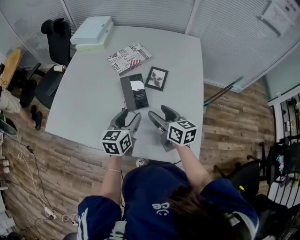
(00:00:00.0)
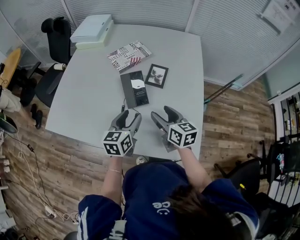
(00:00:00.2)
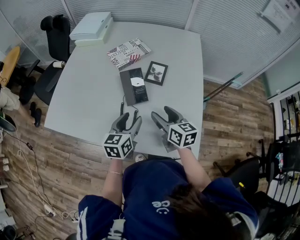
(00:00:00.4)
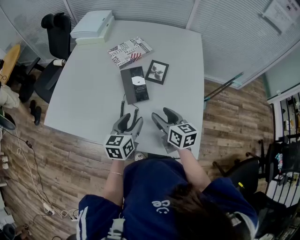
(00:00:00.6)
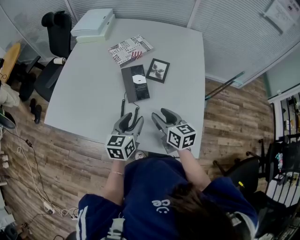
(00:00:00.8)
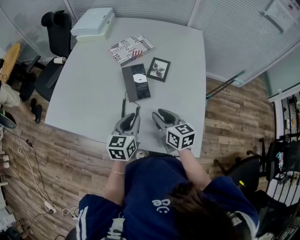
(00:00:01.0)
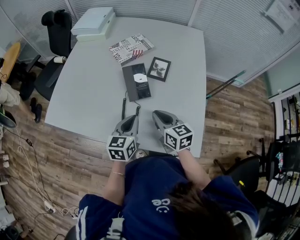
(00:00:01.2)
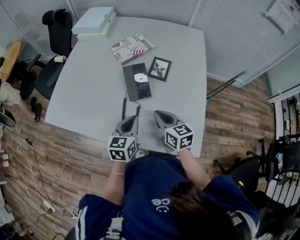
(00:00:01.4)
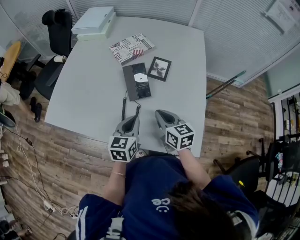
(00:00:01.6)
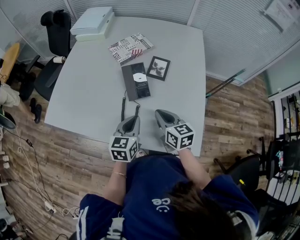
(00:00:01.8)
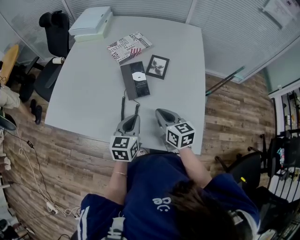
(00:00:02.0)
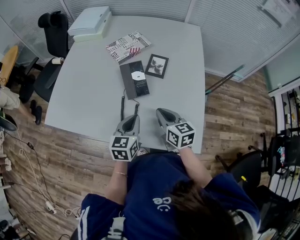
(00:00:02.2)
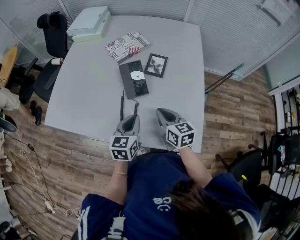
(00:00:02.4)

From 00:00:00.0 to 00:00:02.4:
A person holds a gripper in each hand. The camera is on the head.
From 00:00:00.0 to 00:00:01.2: The right gripper changes place by roughly 5 cm, and closes its fingers; the left gripper travels backward by approximately 5 cm, and closes.
From 00:00:01.2 to 00:00:02.4: The grippers make only small movements.

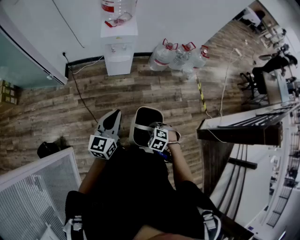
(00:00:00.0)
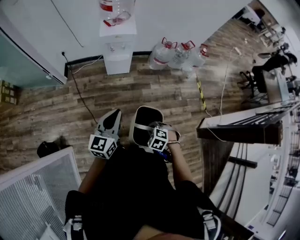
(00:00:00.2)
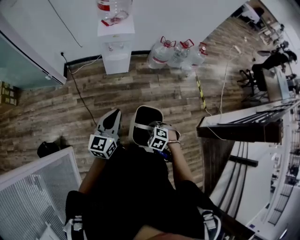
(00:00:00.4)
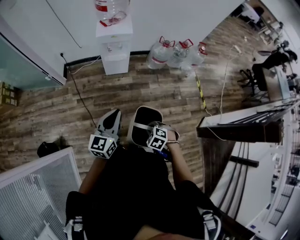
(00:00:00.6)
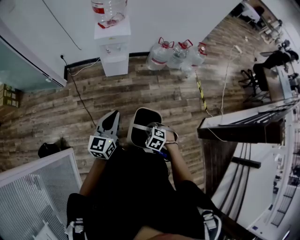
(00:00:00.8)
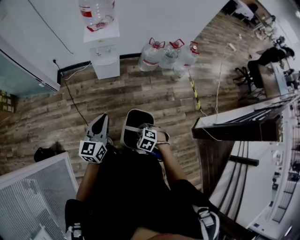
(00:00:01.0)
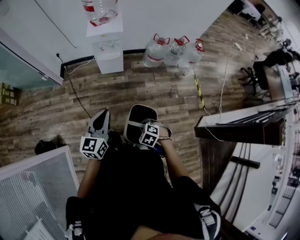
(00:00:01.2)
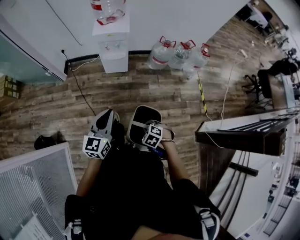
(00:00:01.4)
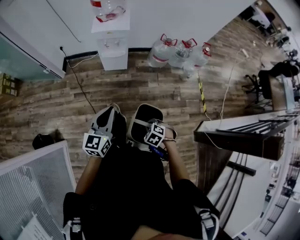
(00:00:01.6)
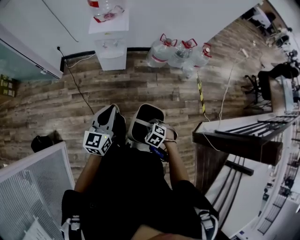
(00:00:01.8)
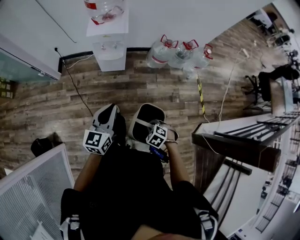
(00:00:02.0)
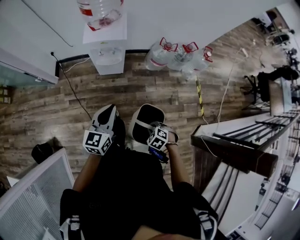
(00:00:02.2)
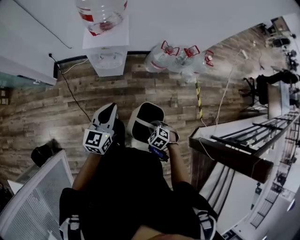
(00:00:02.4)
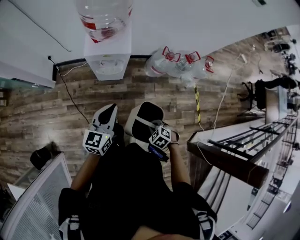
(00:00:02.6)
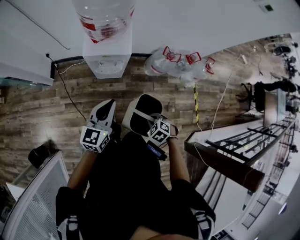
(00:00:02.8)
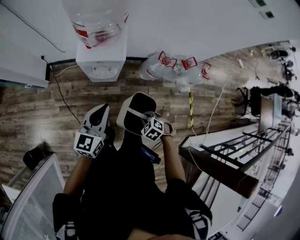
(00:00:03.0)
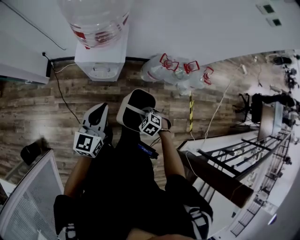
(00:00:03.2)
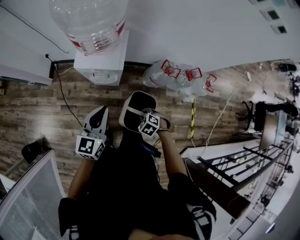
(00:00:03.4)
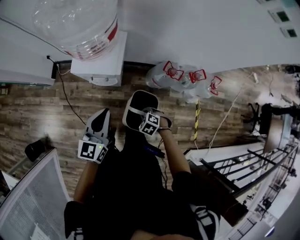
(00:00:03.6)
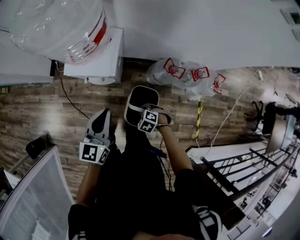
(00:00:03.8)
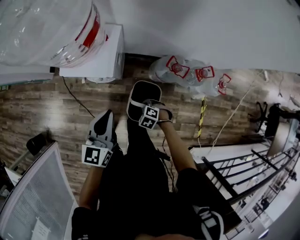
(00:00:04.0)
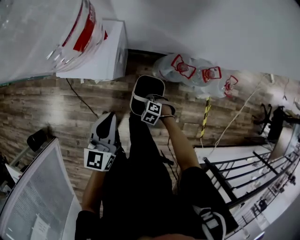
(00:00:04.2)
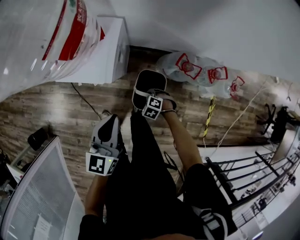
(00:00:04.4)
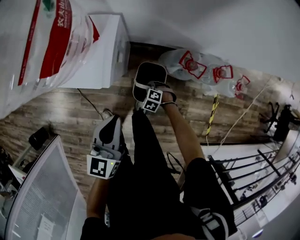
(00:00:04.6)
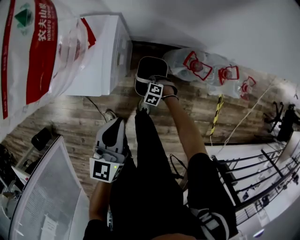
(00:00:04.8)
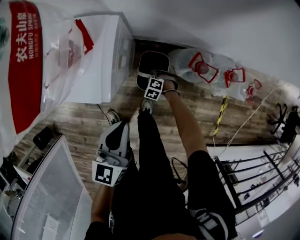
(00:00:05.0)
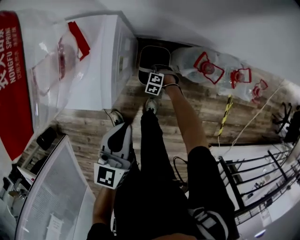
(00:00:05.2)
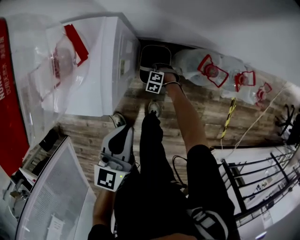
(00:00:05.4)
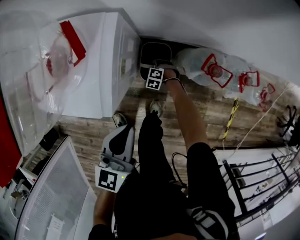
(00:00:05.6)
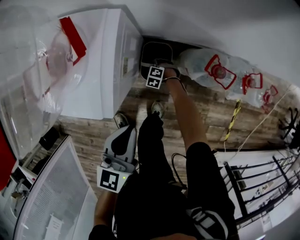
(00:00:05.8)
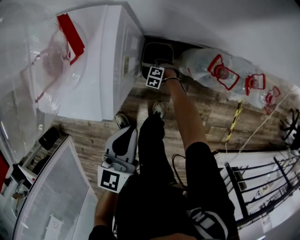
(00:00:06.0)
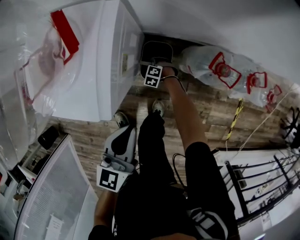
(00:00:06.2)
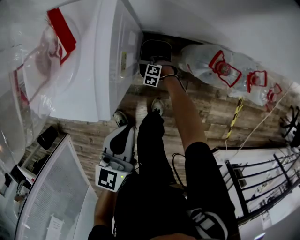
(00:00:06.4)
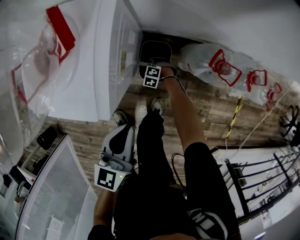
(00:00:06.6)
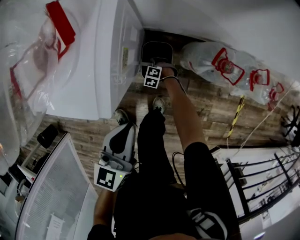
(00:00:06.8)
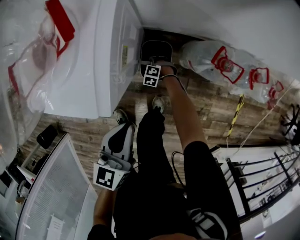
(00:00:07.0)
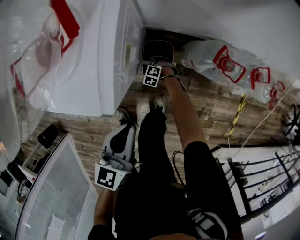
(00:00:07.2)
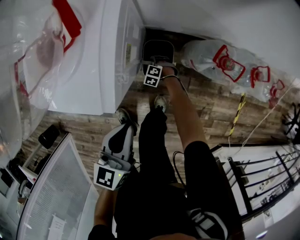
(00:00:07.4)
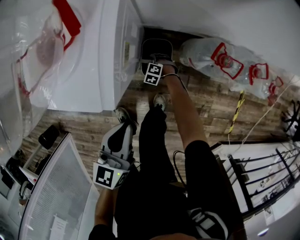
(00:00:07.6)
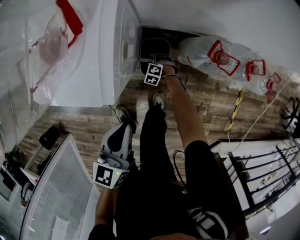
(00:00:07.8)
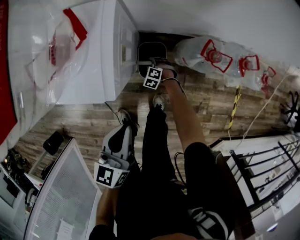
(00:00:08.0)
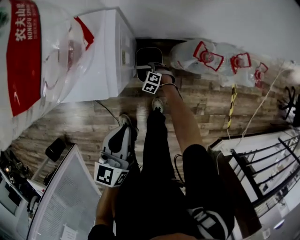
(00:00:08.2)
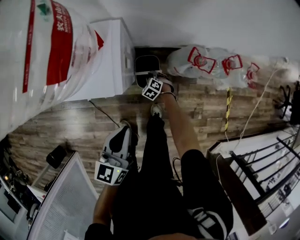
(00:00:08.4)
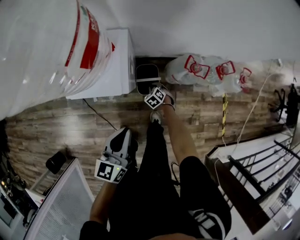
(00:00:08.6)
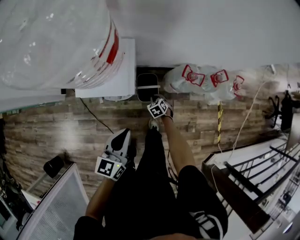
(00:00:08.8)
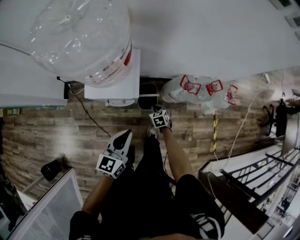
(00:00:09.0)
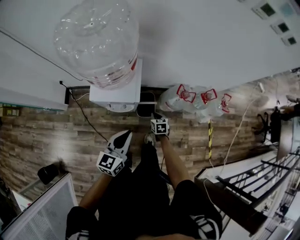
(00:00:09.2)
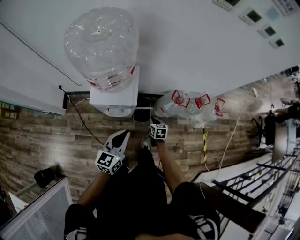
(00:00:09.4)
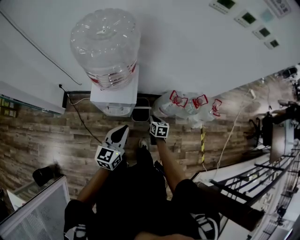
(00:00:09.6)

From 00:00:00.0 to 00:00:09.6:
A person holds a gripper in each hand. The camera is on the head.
From 00:00:00.0 to 00:00:01.6: The left gripper changes place by roughly 10 cm, while the right gripper ends up about 10 cm from where it was.
From 00:00:01.6 to 00:00:03.2: The left gripper moves some 40 cm. Meanwhile the right gripper changes place by roughly 40 cm.
From 00:00:03.2 to 00:00:04.8: The right gripper goes roughly 35 cm downward. The left gripper ends up some 30 cm from where it was.
From 00:00:04.8 to 00:00:06.4: Both grippers travel together downward, about 15 cm.
From 00:00:06.4 to 00:00:08.0: The right gripper goes approximately 5 cm upward, and opens, while the left gripper shifts by roughly 5 cm.
From 00:00:08.0 to 00:00:09.6: The left gripper travels upward by roughly 20 cm. Meanwhile the right gripper travels upward by approximately 40 cm, twists approximately 70 degrees clockwise, seen from behind, and closes its fingers.

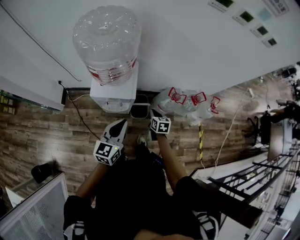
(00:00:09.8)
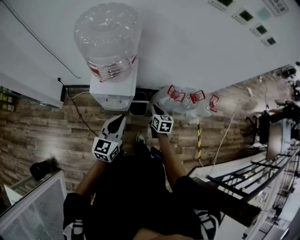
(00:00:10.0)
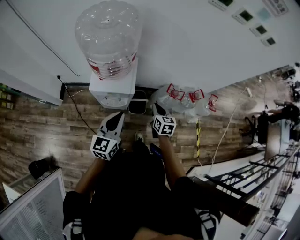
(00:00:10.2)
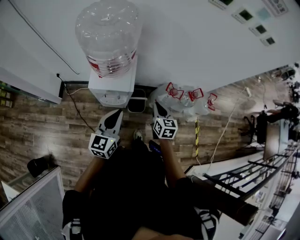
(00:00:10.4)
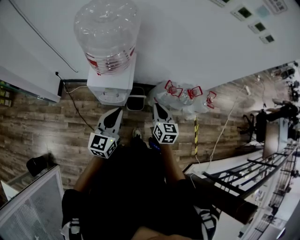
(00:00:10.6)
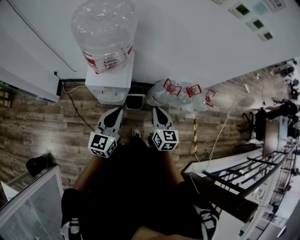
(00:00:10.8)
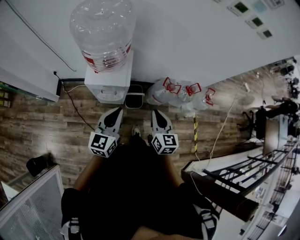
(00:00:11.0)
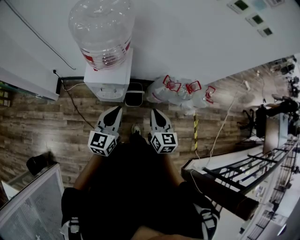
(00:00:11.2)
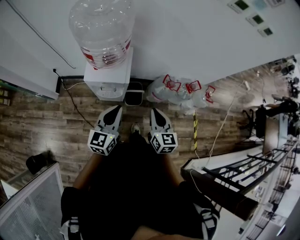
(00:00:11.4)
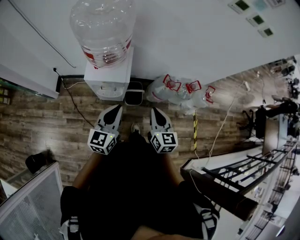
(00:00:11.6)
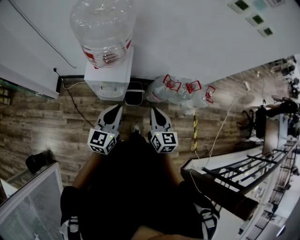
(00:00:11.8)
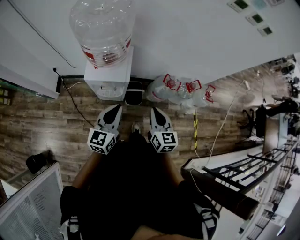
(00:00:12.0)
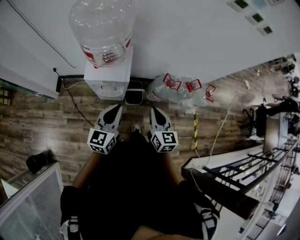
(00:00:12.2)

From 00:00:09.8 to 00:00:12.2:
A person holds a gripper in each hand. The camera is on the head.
From 00:00:09.8 to 00:00:11.0: The right gripper shifts approximately 25 cm upward and backward, and rotates roughly 30 degrees.
From 00:00:11.0 to 00:00:12.2: Both grippers stay about where they are.

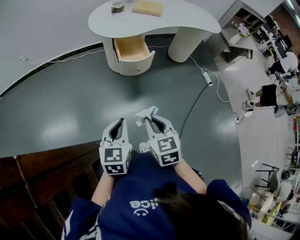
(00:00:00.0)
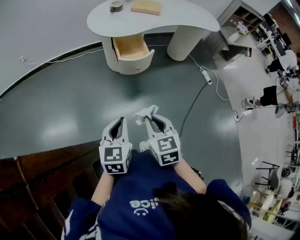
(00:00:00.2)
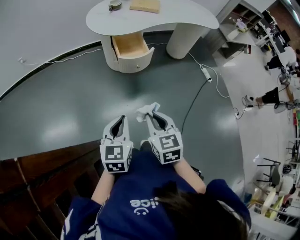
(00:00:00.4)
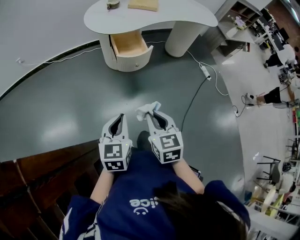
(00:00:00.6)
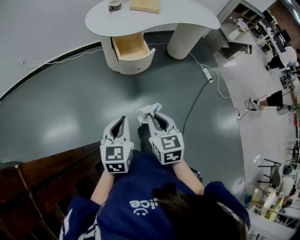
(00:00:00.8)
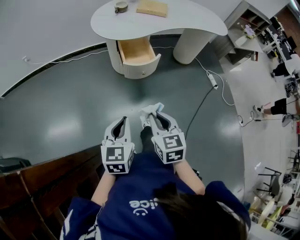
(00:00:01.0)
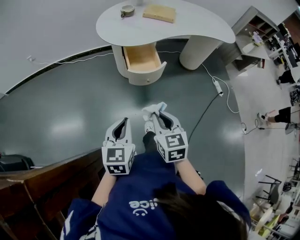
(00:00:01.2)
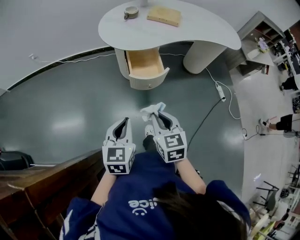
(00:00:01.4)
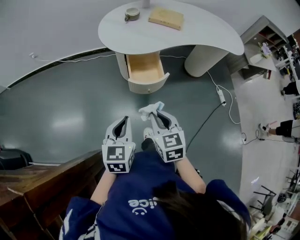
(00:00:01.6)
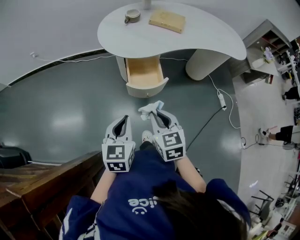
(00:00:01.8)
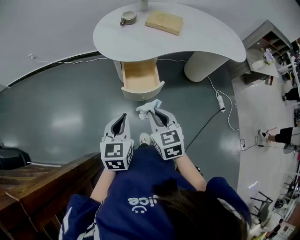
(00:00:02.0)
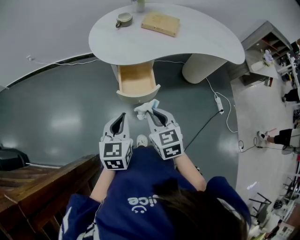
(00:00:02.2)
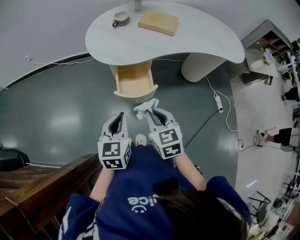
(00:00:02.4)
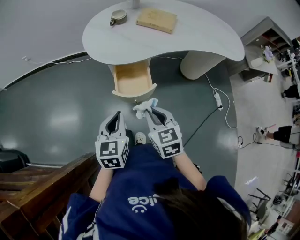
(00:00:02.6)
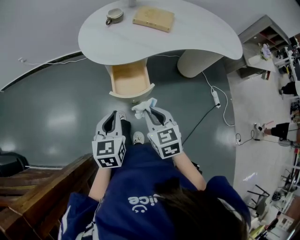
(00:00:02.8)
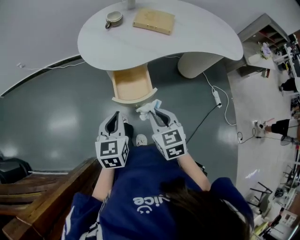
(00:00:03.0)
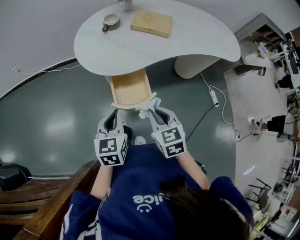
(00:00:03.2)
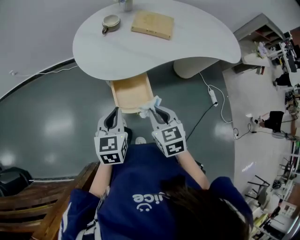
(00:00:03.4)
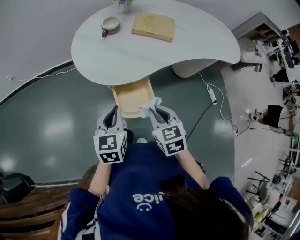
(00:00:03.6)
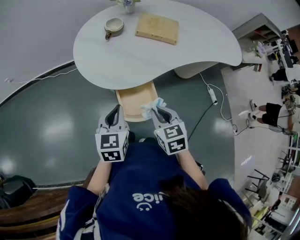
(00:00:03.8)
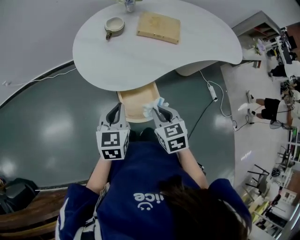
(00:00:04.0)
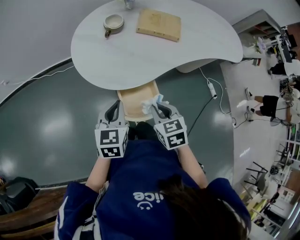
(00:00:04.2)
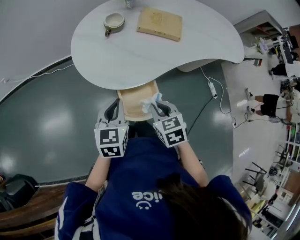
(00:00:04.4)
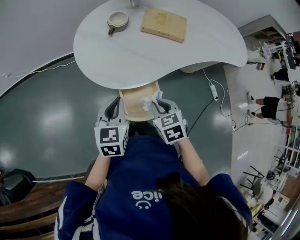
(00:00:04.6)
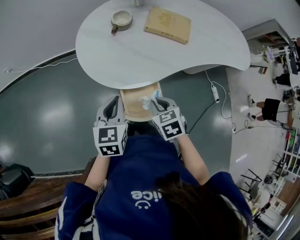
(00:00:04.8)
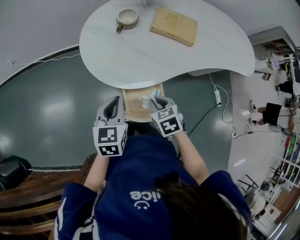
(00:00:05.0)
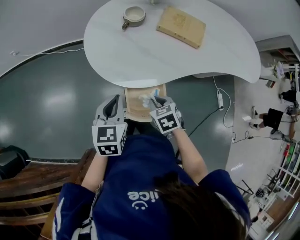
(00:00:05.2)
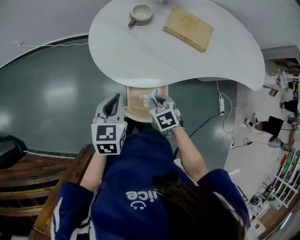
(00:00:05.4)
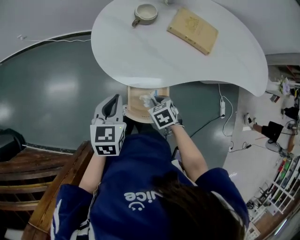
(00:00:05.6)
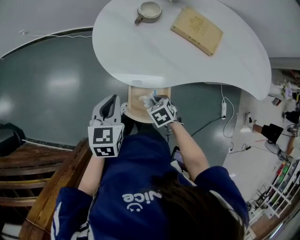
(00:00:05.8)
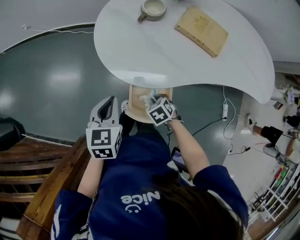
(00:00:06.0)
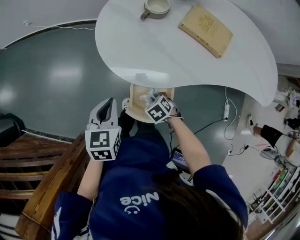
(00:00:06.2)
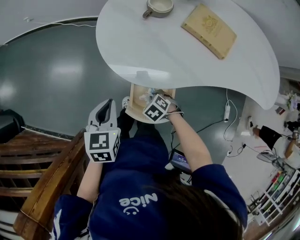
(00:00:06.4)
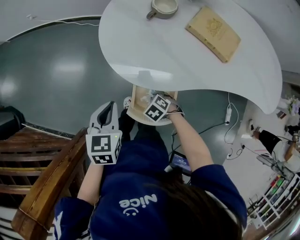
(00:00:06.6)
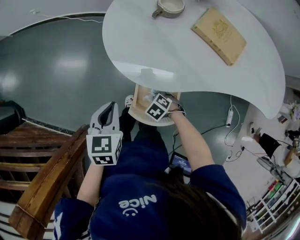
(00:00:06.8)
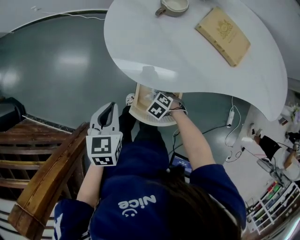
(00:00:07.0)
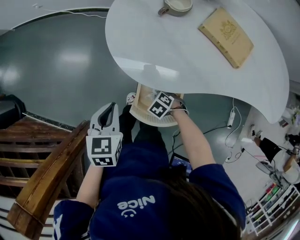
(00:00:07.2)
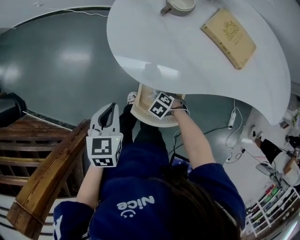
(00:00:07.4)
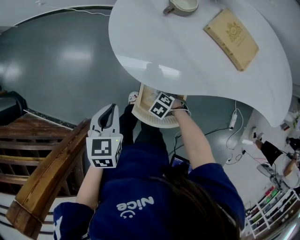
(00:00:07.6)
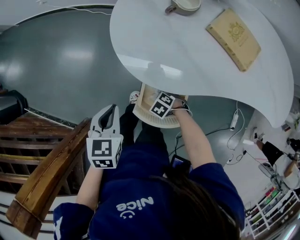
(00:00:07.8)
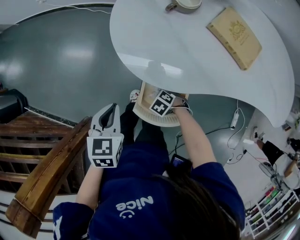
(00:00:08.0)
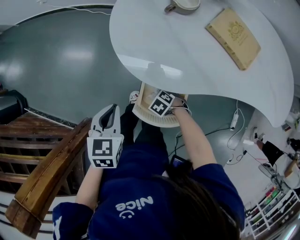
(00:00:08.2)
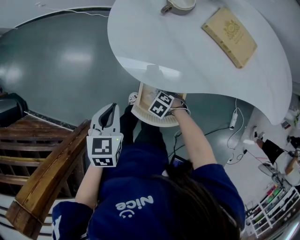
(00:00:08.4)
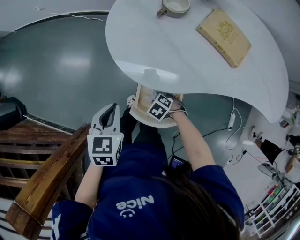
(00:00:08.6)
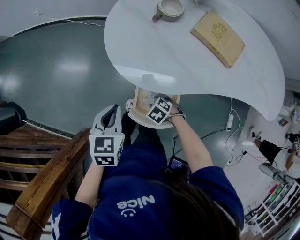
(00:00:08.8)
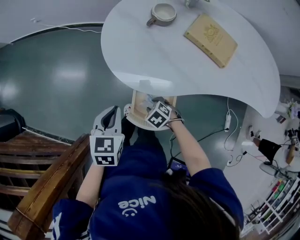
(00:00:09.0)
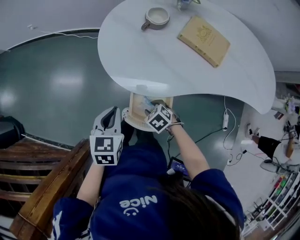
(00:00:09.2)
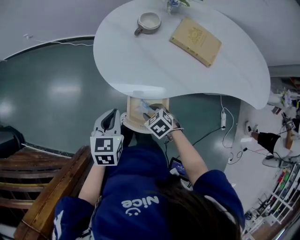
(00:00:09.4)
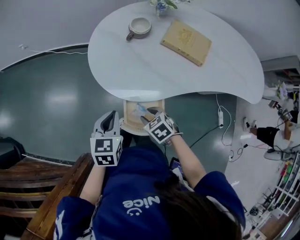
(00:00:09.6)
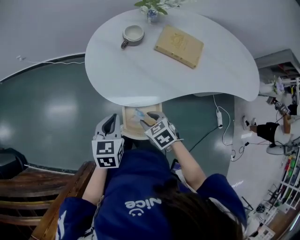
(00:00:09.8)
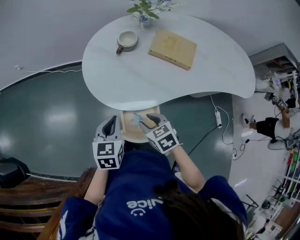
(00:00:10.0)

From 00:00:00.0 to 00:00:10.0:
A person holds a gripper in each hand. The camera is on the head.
From 00:00:00.0 to 00:00:01.4: The grippers both shift forward by some 15 cm.
From 00:00:01.4 to 00:00:02.8: The grippers both shift forward and to the right by approximately 15 cm.
From 00:00:02.8 to 00:00:04.2: The two grippers go about 20 cm forward.
From 00:00:04.2 to 00:00:05.8: The right gripper heads downward, covering some 15 cm, and rotates roughly 40 degrees.
From 00:00:05.8 to 00:00:07.2: The left gripper moves approximately 5 cm. Meanwhile the right gripper heads downward, covering some 10 cm, and rotates some 30 degrees.
From 00:00:07.2 to 00:00:08.6: The right gripper opens.
From 00:00:08.6 to 00:00:10.0: The right gripper travels upward by some 20 cm, and changes its angle by roughly 50 degrees. The left gripper shifts by about 10 cm.
